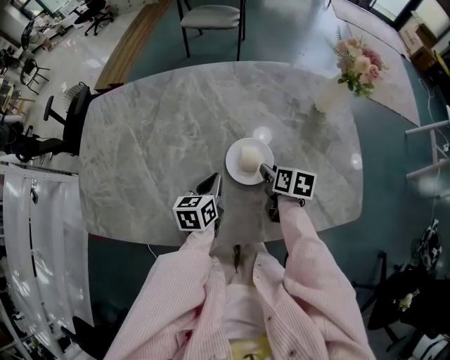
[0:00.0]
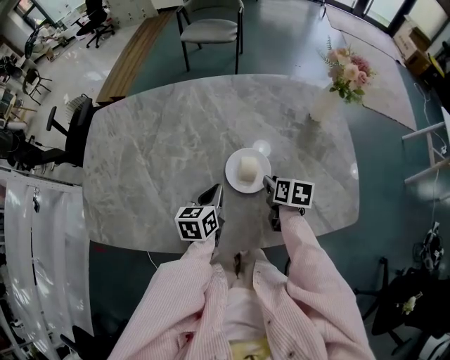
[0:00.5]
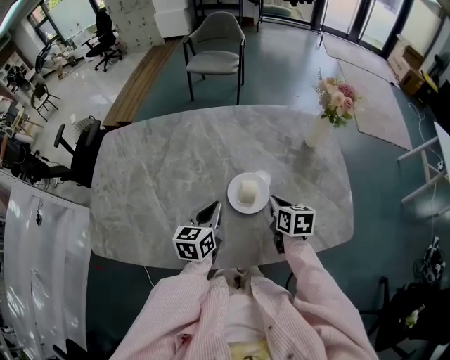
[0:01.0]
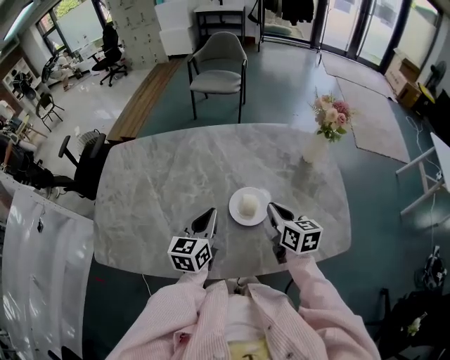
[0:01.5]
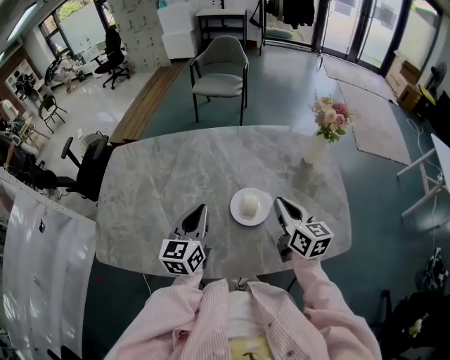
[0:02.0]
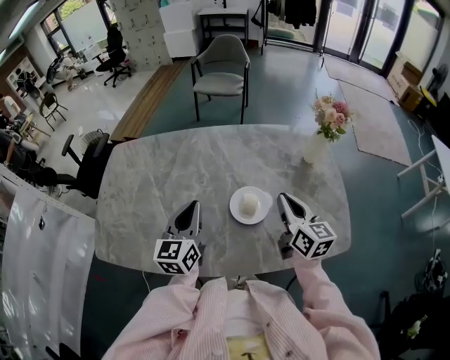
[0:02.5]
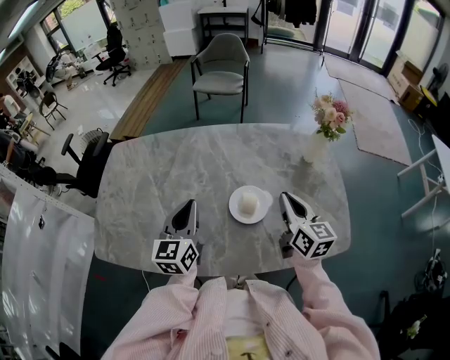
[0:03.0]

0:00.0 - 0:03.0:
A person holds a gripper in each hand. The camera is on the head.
0:00.0 - 0:01.5: The grippers both shift upward by roughly 15 cm. The left gripper rotates approximately 20 degrees. Meanwhile the right gripper changes its angle by roughly 30 degrees, and closes.
0:01.5 - 0:03.0: The two grippers go some 5 cm upward.

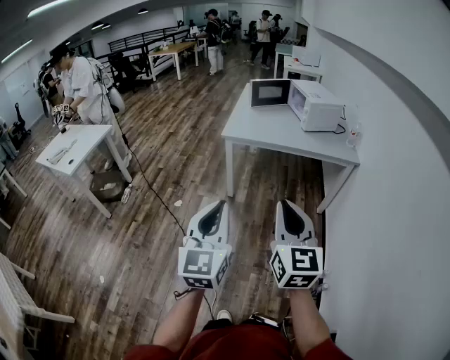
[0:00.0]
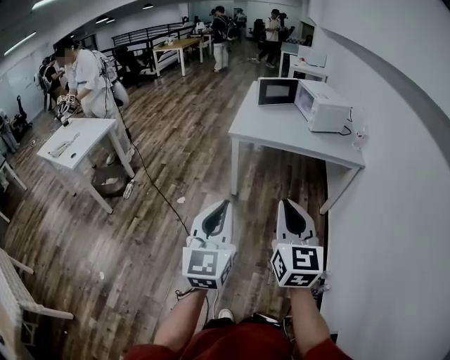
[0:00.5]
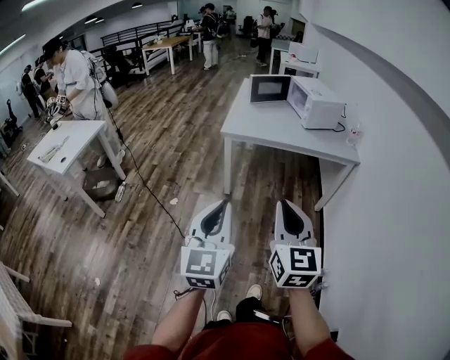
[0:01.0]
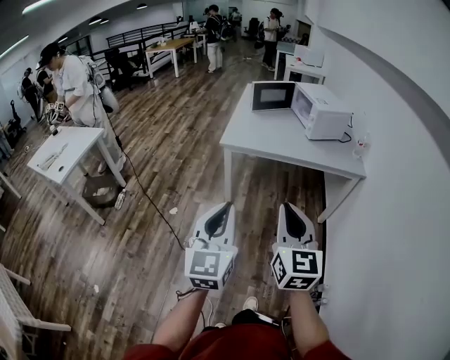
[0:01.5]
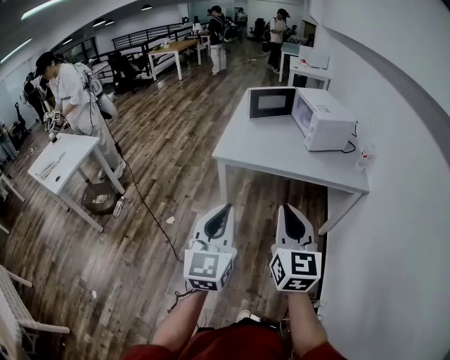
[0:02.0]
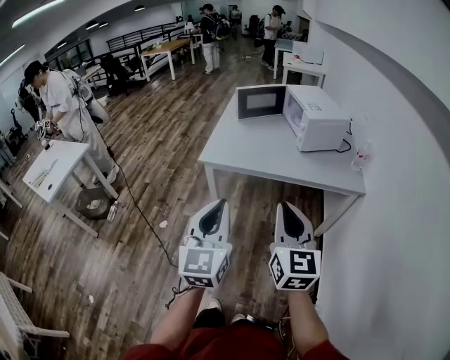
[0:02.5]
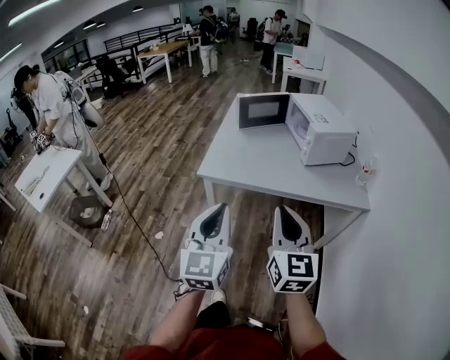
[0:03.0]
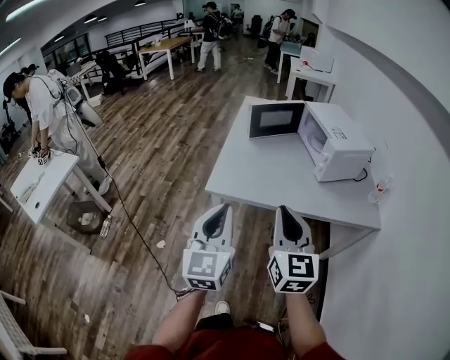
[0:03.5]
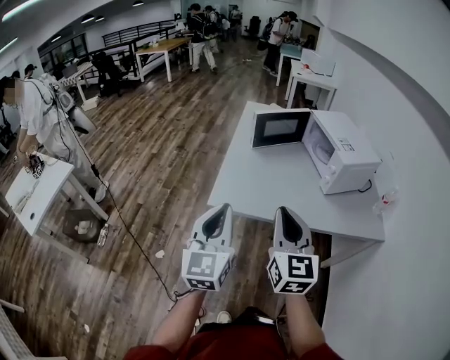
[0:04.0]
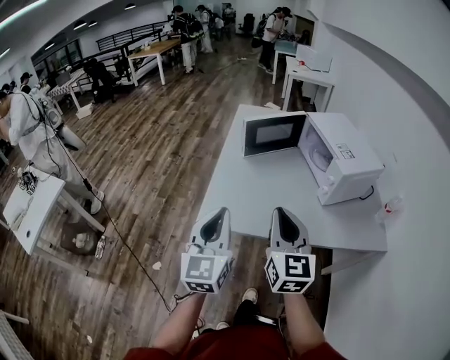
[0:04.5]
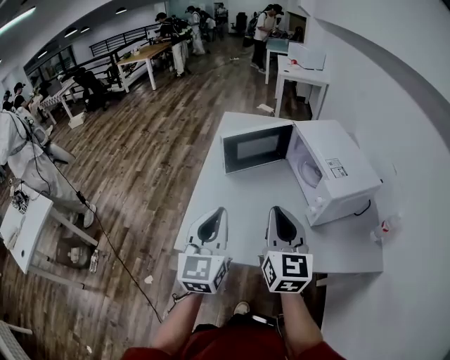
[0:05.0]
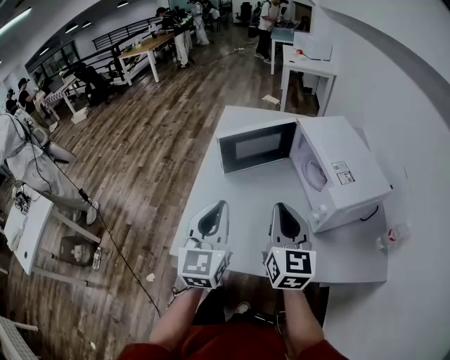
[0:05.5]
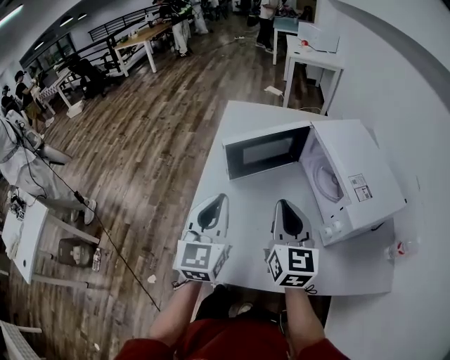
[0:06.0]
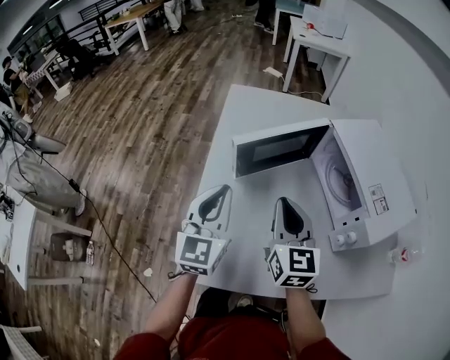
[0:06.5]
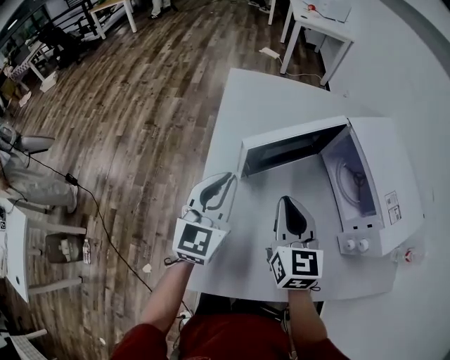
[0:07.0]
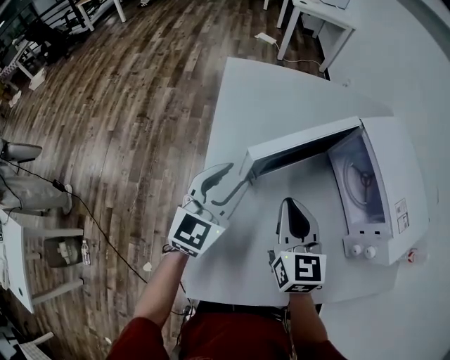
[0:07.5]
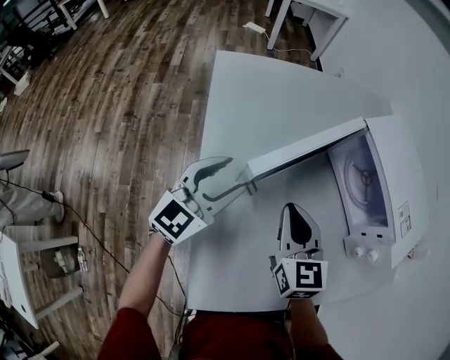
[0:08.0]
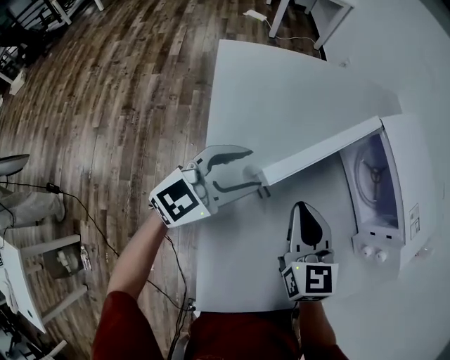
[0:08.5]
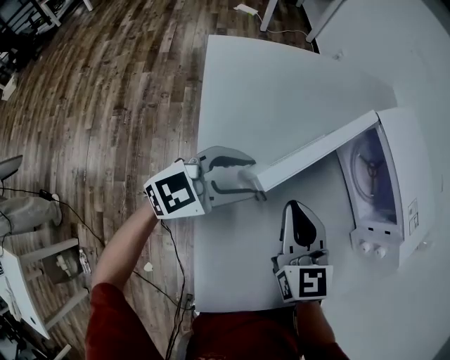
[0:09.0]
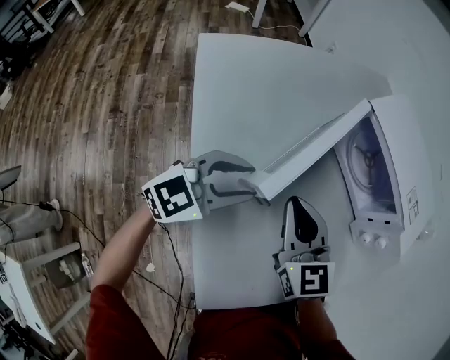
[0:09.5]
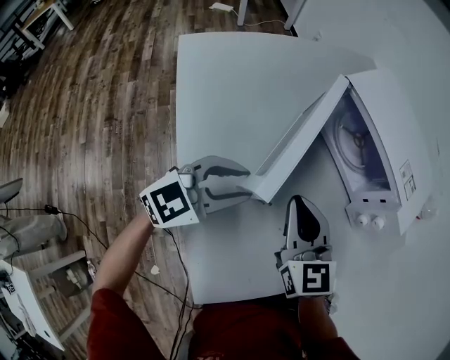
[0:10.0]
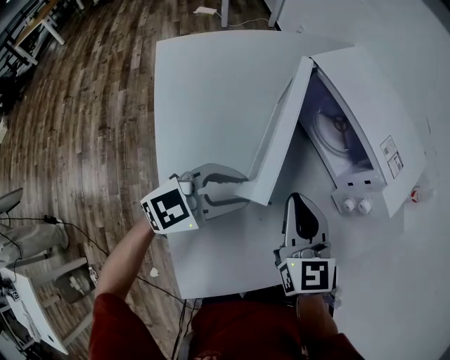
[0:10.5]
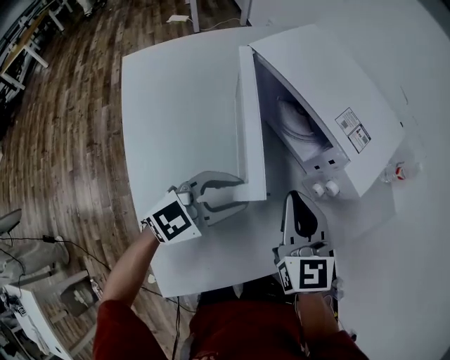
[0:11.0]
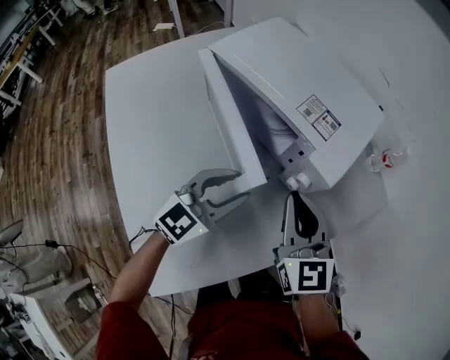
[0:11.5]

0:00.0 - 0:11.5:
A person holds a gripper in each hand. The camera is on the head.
0:00.0 - 0:02.0: Both grippers travel together forward, about 25 cm.
0:02.0 - 0:04.0: The grippers both shift forward by approximately 35 cm.
0:04.0 - 0:06.0: The grippers both shift forward by roughly 40 cm.
0:06.0 - 0:07.5: The right gripper travels forward, to the left and downward by some 20 cm. Meanwhile the left gripper shifts some 25 cm forward, downward and to the left, turns by roughly 30 degrees, and opens its fingers.
0:07.5 - 0:09.5: The left gripper shifts by roughly 5 cm, and turns by about 50 degrees.
0:09.5 - 0:11.5: Both grippers move to the right, approximately 30 cm.

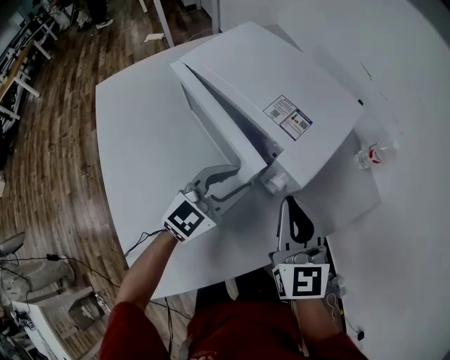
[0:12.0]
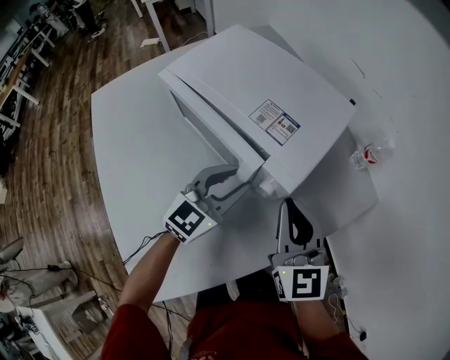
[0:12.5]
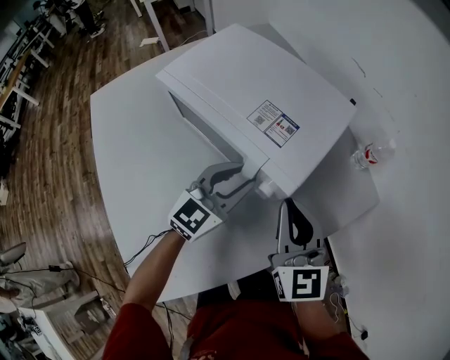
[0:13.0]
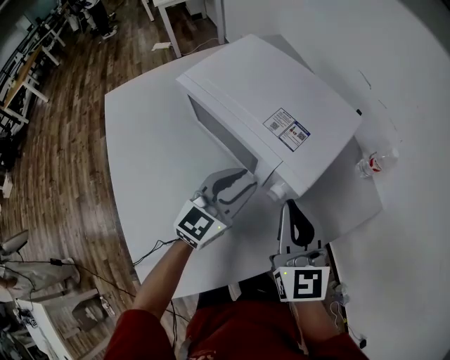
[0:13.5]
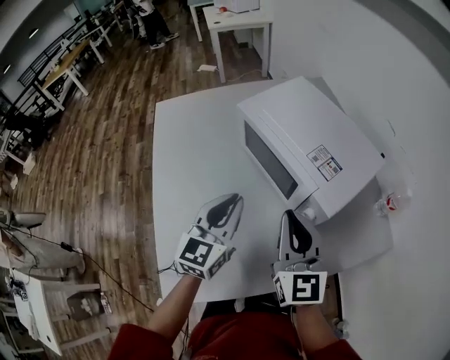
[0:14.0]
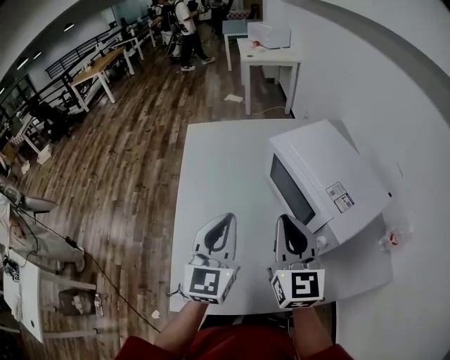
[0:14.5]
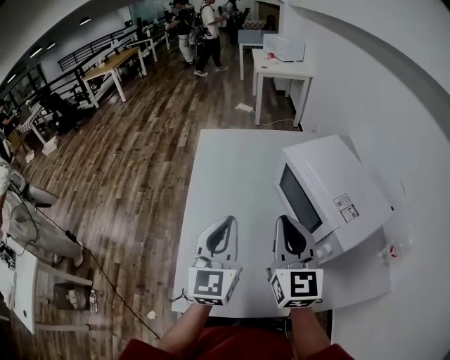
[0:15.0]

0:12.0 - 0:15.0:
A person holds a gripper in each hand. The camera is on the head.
0:12.0 - 0:13.5: There are only small adjustments of the grippers.
0:13.5 - 0:15.0: The right gripper changes place by about 25 cm, and turns by roughly 20 degrees. Meanwhile the left gripper changes place by some 30 cm, turns by roughly 60 degrees, and closes its fingers.

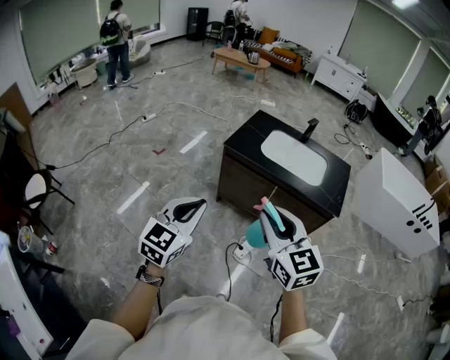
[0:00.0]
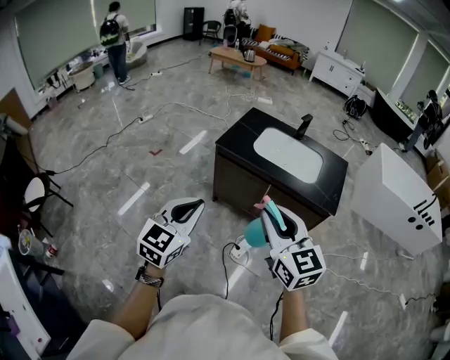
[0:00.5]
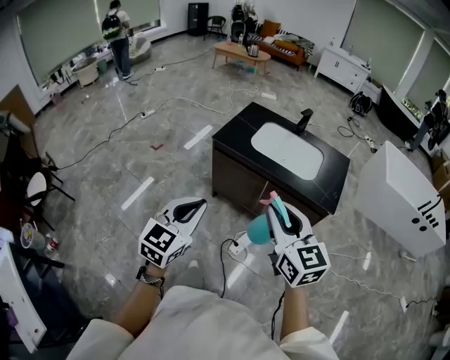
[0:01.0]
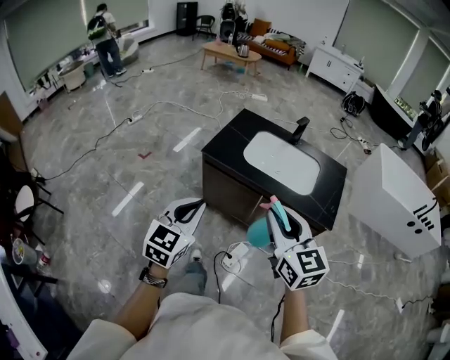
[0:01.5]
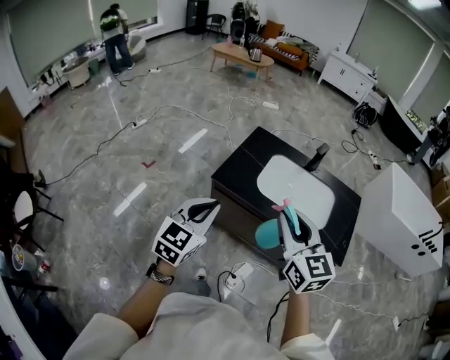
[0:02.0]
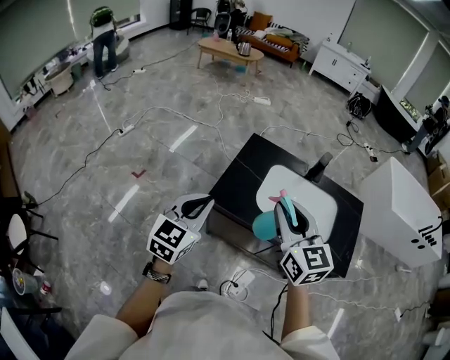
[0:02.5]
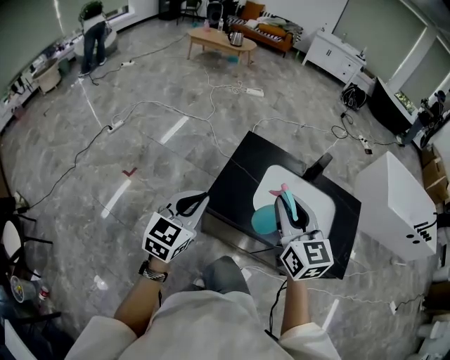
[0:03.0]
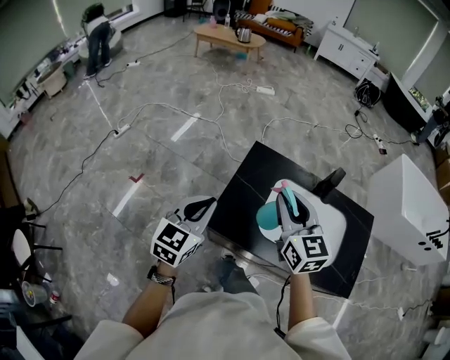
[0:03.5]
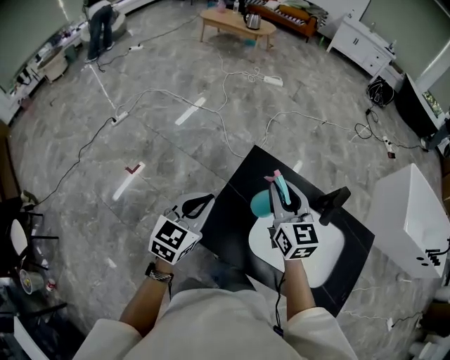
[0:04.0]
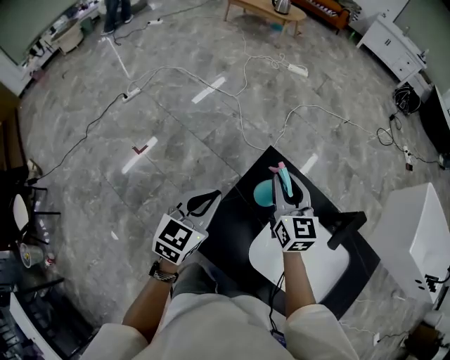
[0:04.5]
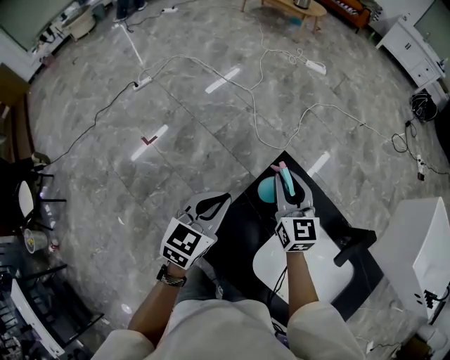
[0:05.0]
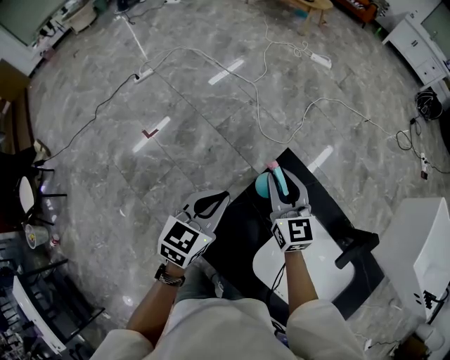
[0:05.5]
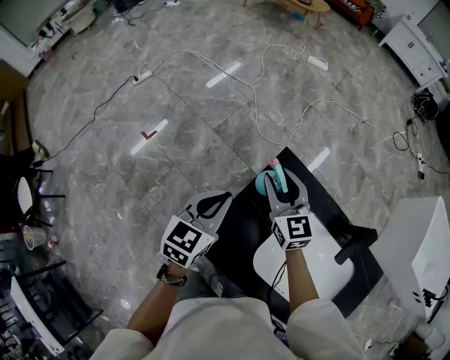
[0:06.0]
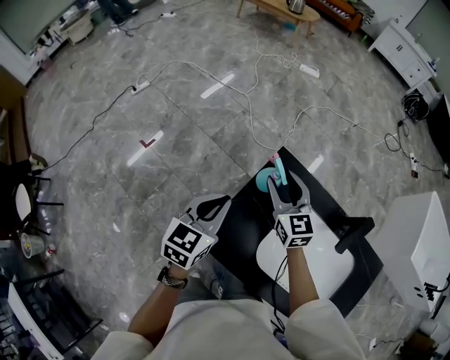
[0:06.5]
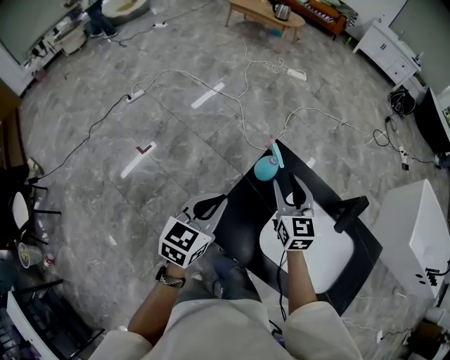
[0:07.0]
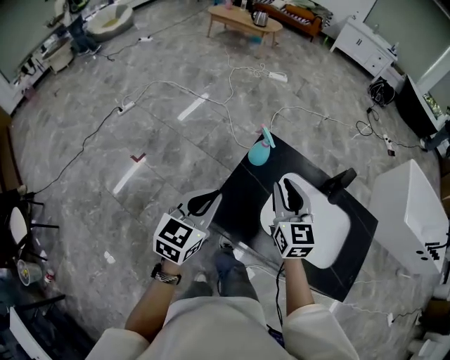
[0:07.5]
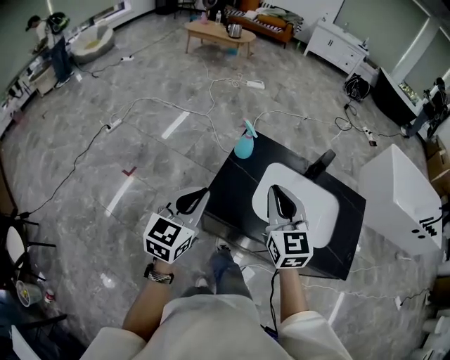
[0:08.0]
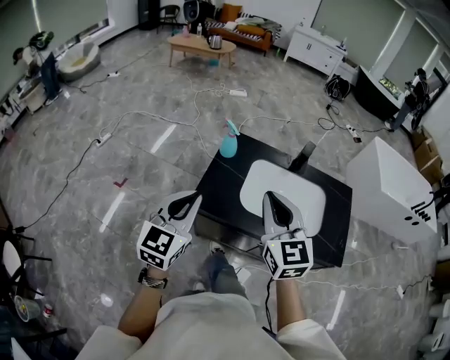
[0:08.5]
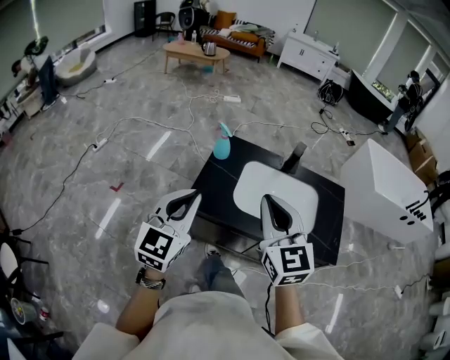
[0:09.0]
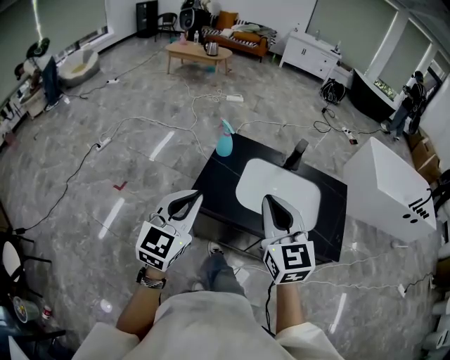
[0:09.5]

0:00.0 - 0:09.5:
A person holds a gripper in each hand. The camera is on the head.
0:00.0 - 0:02.0: The two grippers go approximately 35 cm forward.
0:02.0 - 0:04.0: The pair of grippers is taken forward, roughly 50 cm.
0:04.0 - 0:05.5: The right gripper heads forward, downward and to the left, covering some 20 cm, while the left gripper is displaced forward and downward by roughly 15 cm.
0:05.5 - 0:07.5: The grippers both shift backward and upward by approximately 25 cm. The right gripper opens, then closes again.
0:07.5 - 0:09.5: The grippers both shift backward and upward by roughly 25 cm. The right gripper closes up.
